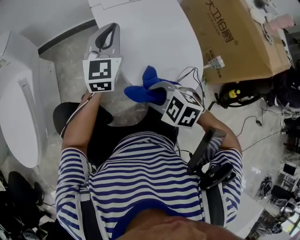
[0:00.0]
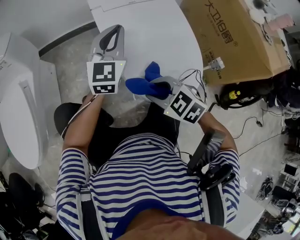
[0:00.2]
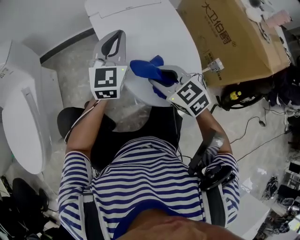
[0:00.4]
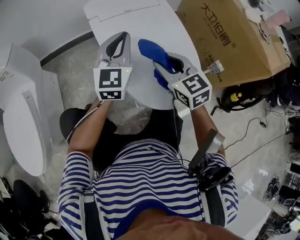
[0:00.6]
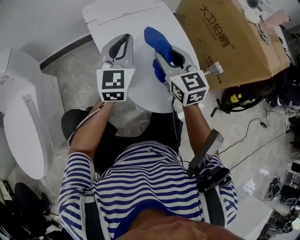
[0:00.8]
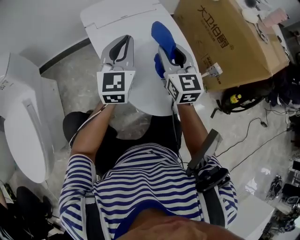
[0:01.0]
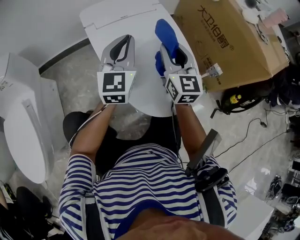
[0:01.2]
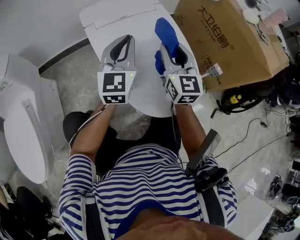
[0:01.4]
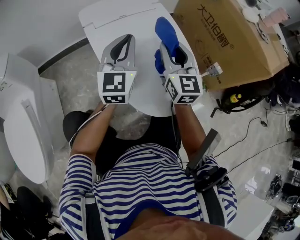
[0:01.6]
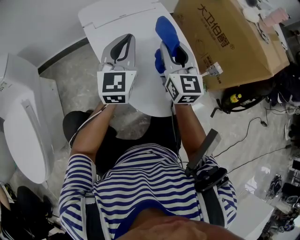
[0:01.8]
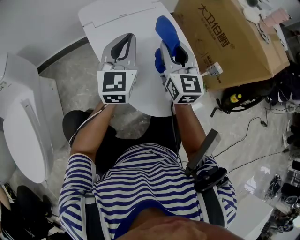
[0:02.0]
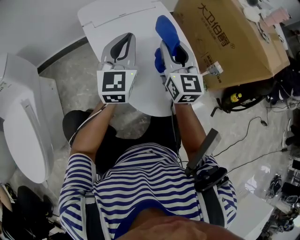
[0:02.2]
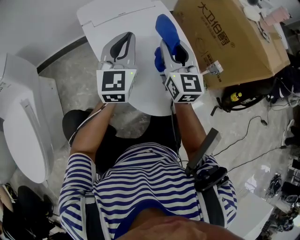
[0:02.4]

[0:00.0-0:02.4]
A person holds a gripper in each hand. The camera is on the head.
0:00.0 to 0:01.2: The right gripper ends up some 25 cm from where it was, and tilts its fingers approximately 50 degrees upward. Meanwhile the left gripper changes place by roughly 5 cm.
0:01.2 to 0:02.4: Neither gripper changes place.

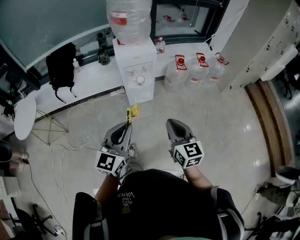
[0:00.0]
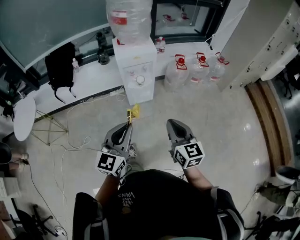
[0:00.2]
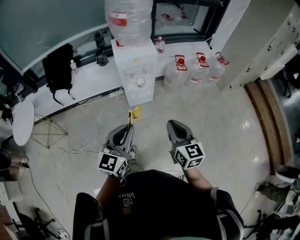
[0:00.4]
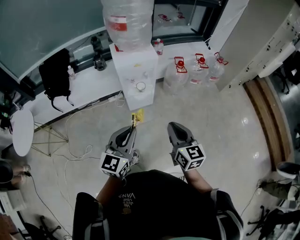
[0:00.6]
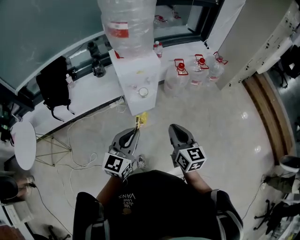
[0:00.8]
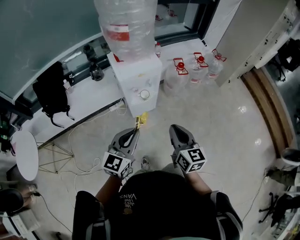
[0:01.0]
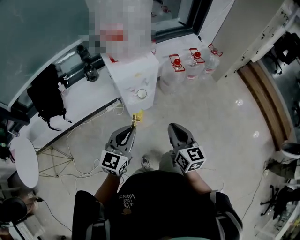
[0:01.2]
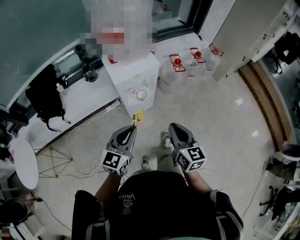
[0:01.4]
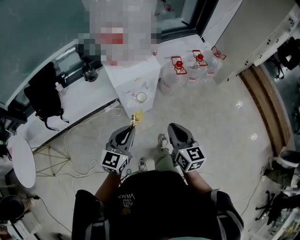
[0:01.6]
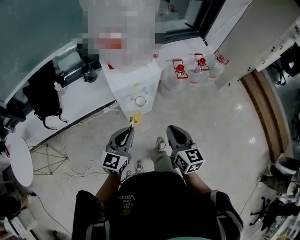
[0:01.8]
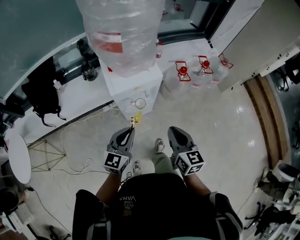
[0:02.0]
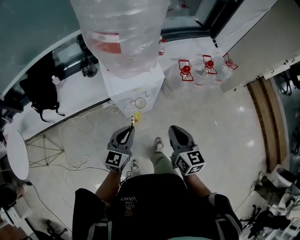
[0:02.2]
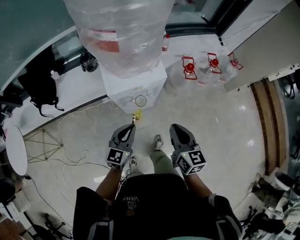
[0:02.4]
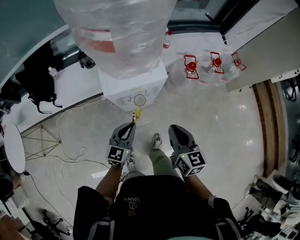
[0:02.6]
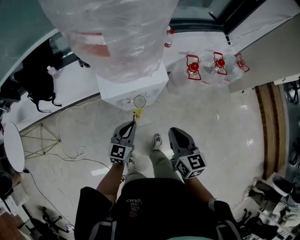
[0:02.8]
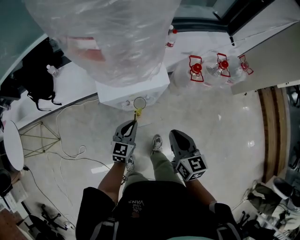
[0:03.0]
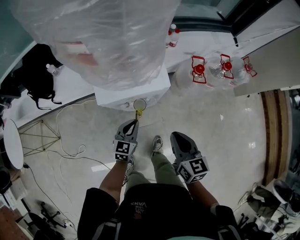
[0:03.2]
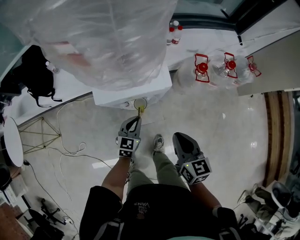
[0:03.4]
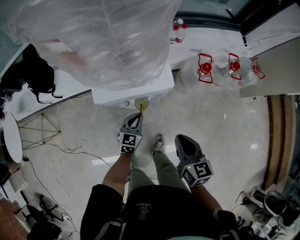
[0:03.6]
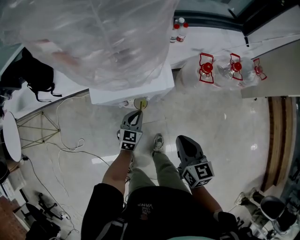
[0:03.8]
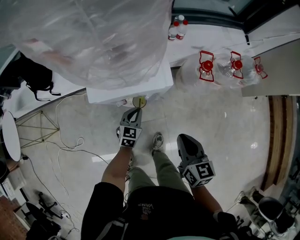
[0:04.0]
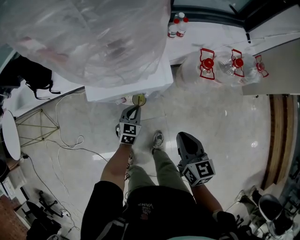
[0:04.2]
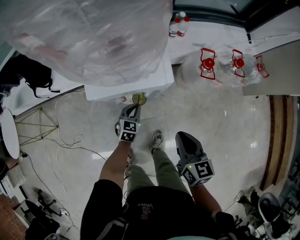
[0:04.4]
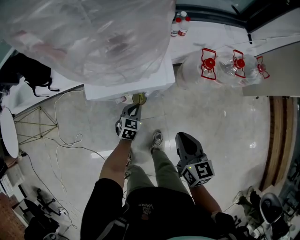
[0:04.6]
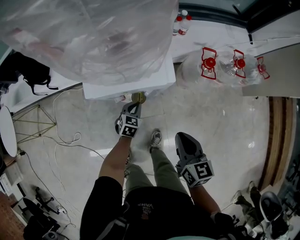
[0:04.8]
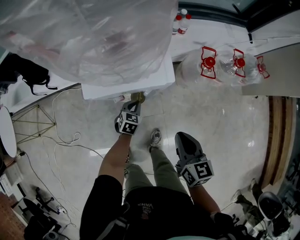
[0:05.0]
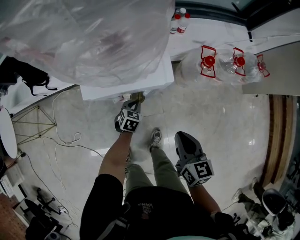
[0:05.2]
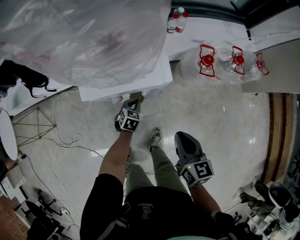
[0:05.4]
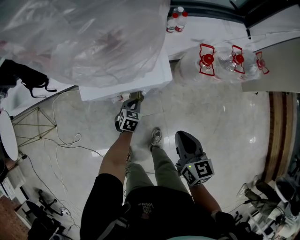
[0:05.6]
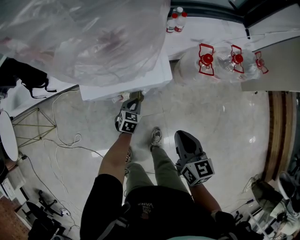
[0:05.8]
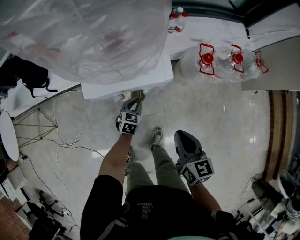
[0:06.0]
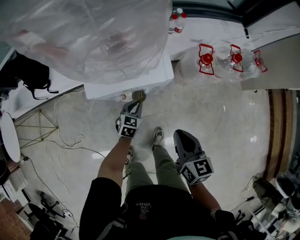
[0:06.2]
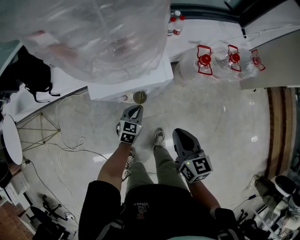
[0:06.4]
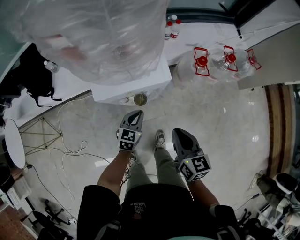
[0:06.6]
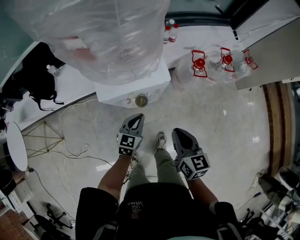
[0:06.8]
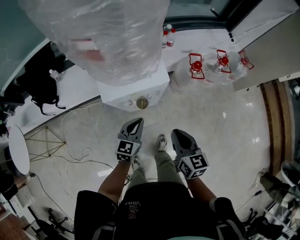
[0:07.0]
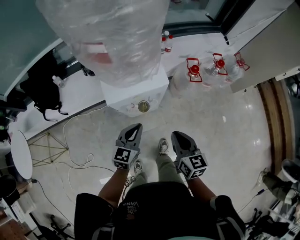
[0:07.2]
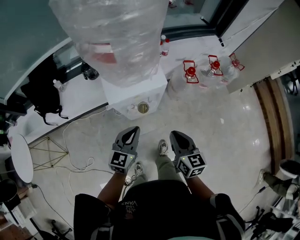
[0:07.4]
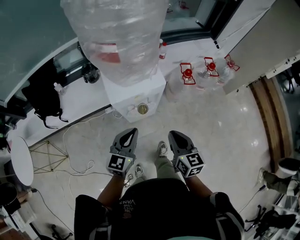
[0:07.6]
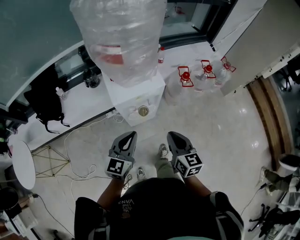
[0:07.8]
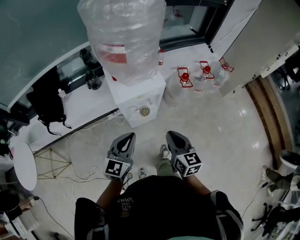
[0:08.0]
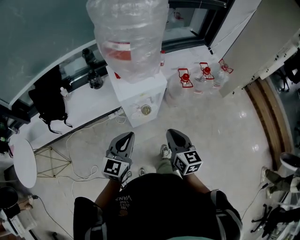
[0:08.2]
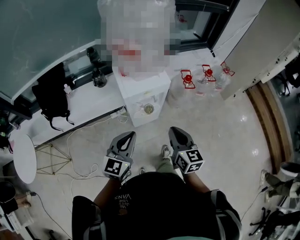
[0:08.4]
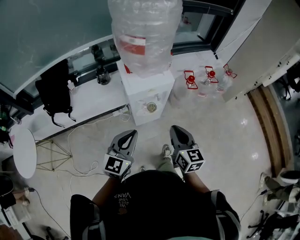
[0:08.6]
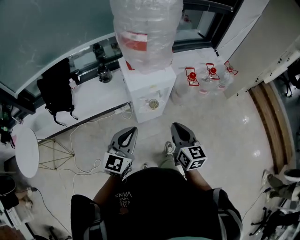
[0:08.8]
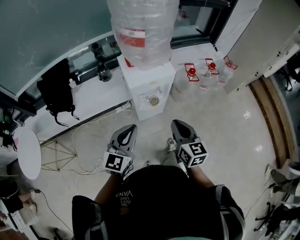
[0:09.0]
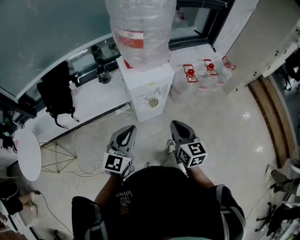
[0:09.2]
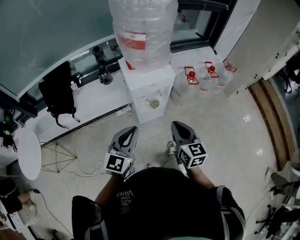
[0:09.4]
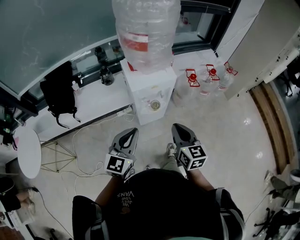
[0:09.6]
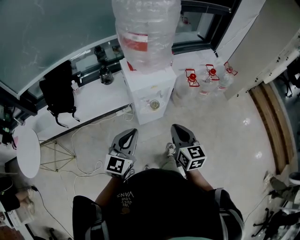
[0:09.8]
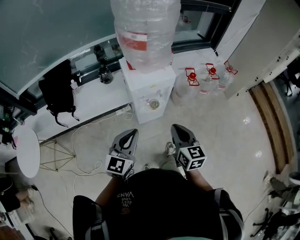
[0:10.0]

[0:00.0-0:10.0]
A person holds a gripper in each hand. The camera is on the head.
0:00.0 to 0:01.4: Both grippers move forward and to the left, roughly 30 cm.
0:01.4 to 0:02.8: The grippers both shift forward and downward by approximately 30 cm.
0:02.8 to 0:04.2: The left gripper moves downward and forward, roughly 20 cm. The right gripper is displaced downward and to the right by approximately 10 cm.
0:04.2 to 0:05.8: The left gripper goes approximately 5 cm downward.
0:05.8 to 0:07.2: The right gripper travels upward, backward and to the left by approximately 15 cm; the left gripper moves upward and backward, some 30 cm, and swivels some 30 degrees.
0:07.2 to 0:08.6: The two grippers go roughly 25 cm backward, upward and to the left.
0:08.6 to 0:10.0: The grippers make only small movements.

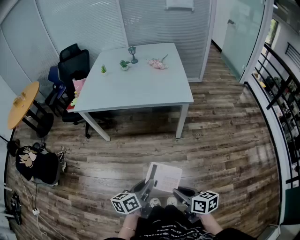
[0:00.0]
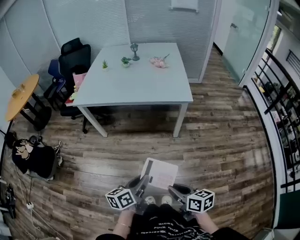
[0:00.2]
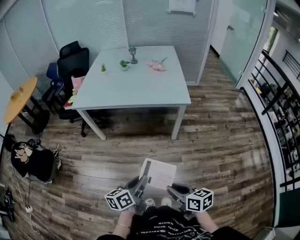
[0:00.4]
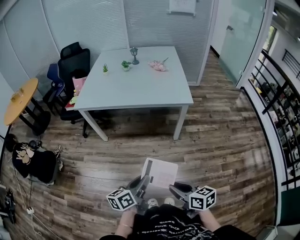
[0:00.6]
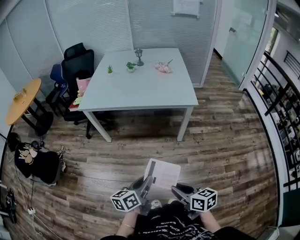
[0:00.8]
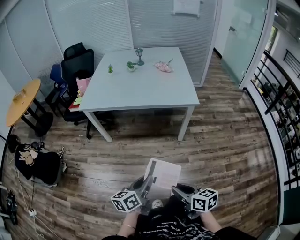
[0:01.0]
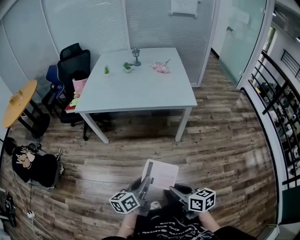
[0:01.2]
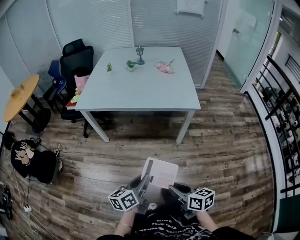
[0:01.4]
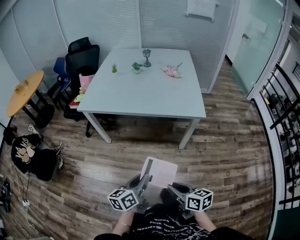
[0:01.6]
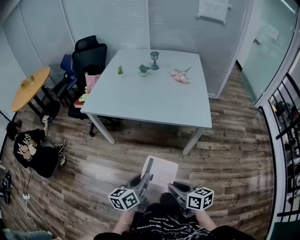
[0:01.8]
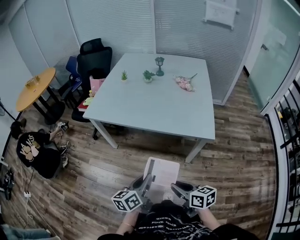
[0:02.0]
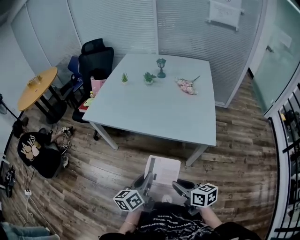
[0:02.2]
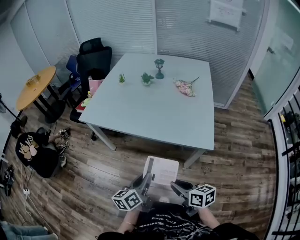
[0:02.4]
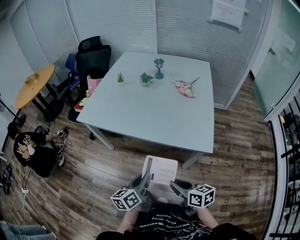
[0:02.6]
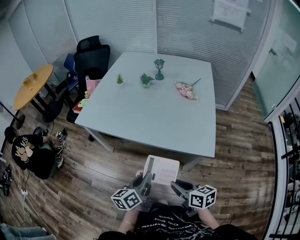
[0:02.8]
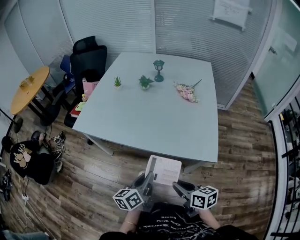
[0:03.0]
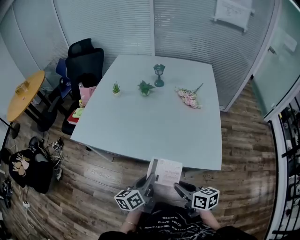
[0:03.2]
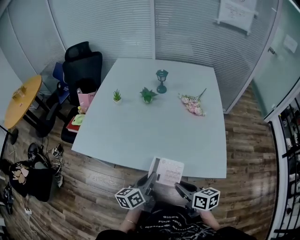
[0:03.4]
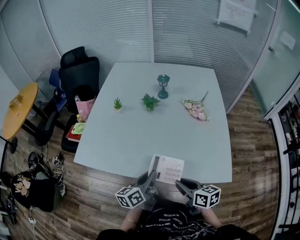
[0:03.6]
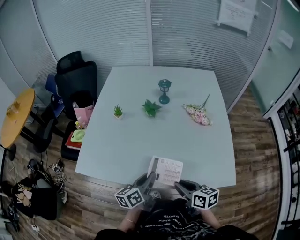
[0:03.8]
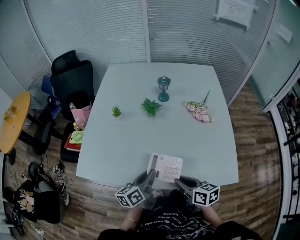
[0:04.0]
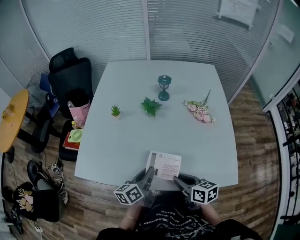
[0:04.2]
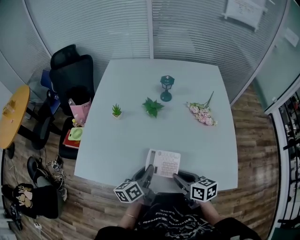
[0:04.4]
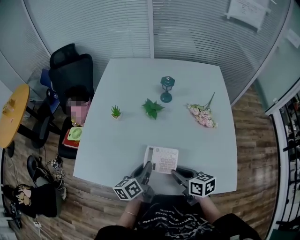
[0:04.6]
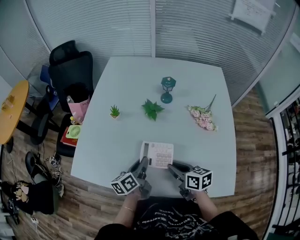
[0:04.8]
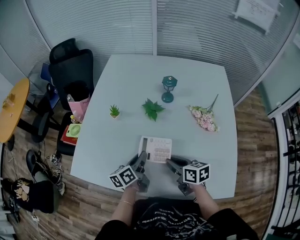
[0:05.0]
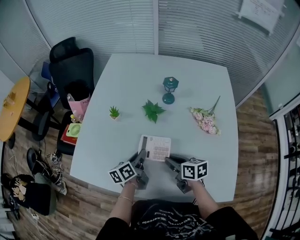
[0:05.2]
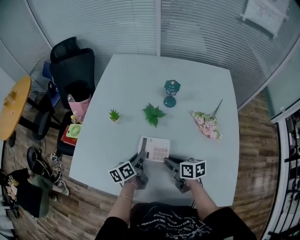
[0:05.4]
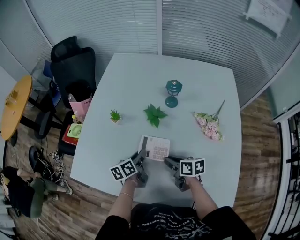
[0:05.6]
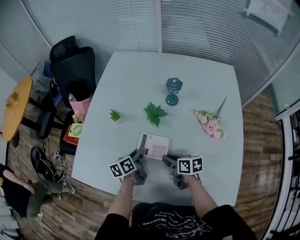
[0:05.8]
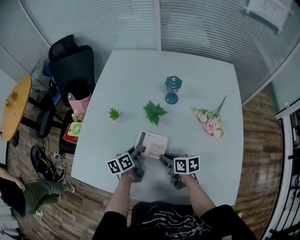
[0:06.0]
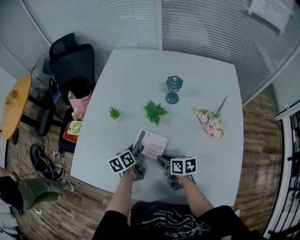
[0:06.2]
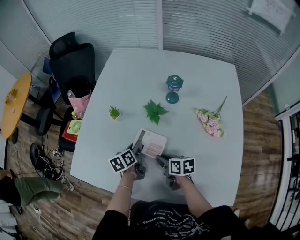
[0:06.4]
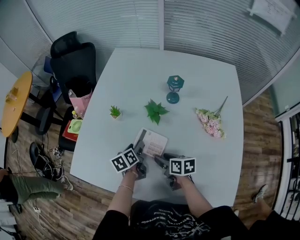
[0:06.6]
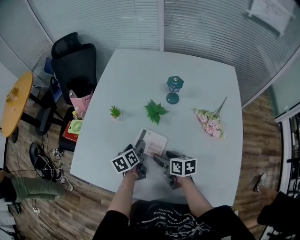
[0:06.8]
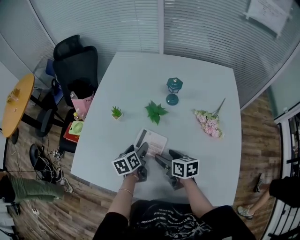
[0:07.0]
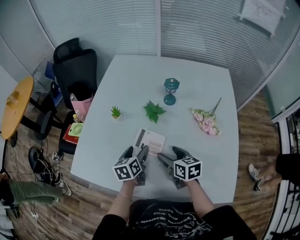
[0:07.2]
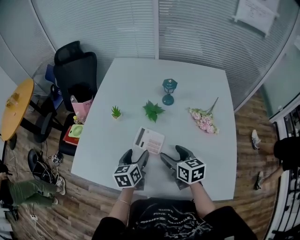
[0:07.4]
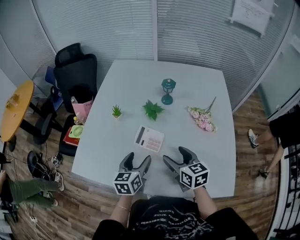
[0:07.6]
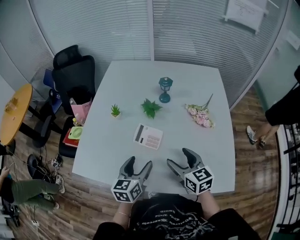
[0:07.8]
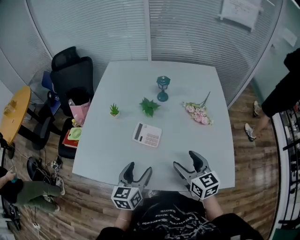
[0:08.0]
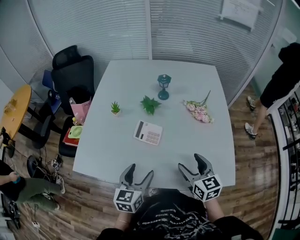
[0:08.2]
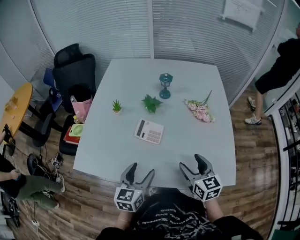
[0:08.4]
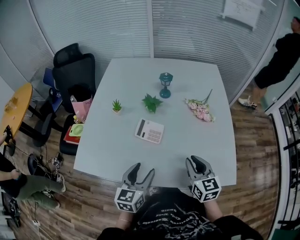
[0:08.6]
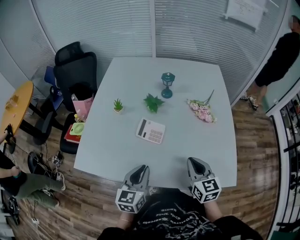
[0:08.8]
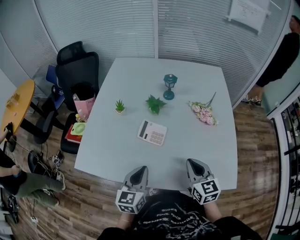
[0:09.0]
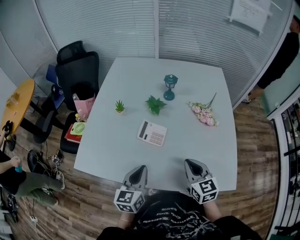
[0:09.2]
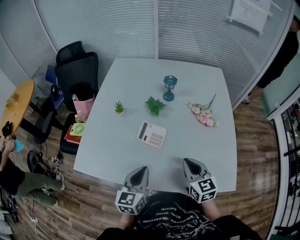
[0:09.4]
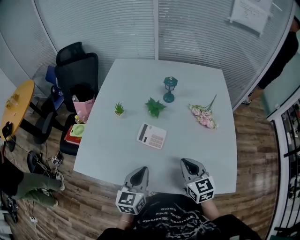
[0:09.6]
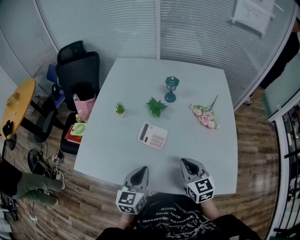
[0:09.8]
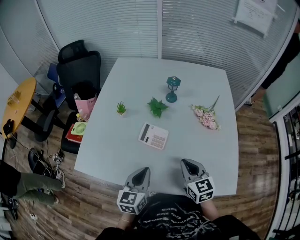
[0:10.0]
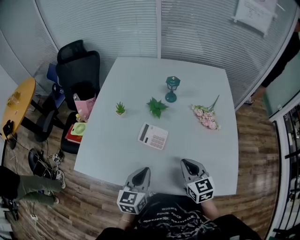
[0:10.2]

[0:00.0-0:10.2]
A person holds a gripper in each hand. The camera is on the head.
0:00.0 to 0:01.4: The right gripper moves forward and to the left, some 10 cm. Meanwhile the left gripper shifts approximately 10 cm to the left and forward.
0:01.4 to 0:03.0: The left gripper travels forward by some 35 cm, while the right gripper heads forward and to the right, covering roughly 40 cm.
0:03.0 to 0:04.4: Both grippers travel together forward, approximately 30 cm.
0:04.4 to 0:05.8: The grippers both shift forward and downward by roughly 20 cm.
0:05.8 to 0:07.2: The left gripper changes place by some 5 cm, changes its angle by roughly 20 degrees, and opens. Meanwhile the right gripper moves upward, some 5 cm, rotates roughly 20 degrees, and opens.
0:07.2 to 0:08.8: The right gripper heads backward, to the right and upward, covering about 20 cm, turns by about 30 degrees, and closes its fingers. Meanwhile the left gripper is displaced backward and upward by about 20 cm, swivels about 30 degrees, and closes.
0:08.8 to 0:10.2: The right gripper moves some 5 cm.

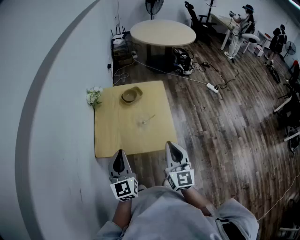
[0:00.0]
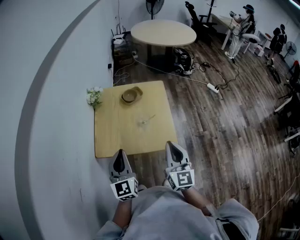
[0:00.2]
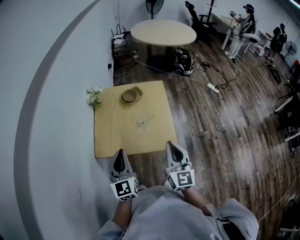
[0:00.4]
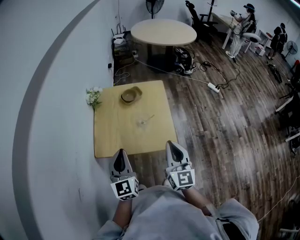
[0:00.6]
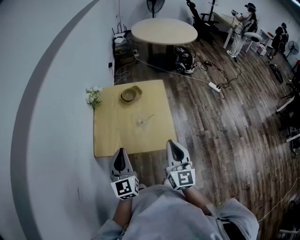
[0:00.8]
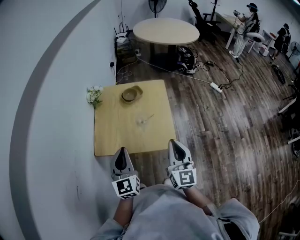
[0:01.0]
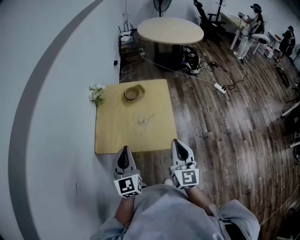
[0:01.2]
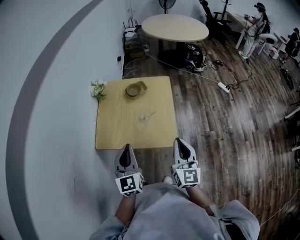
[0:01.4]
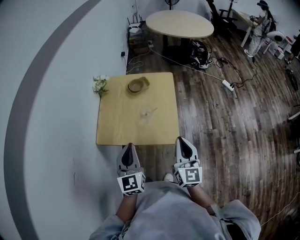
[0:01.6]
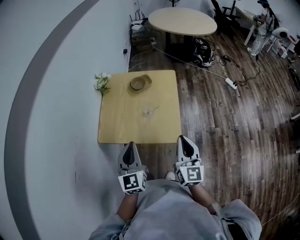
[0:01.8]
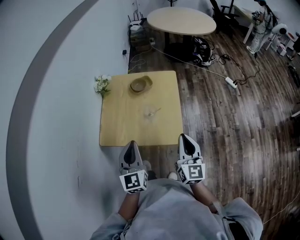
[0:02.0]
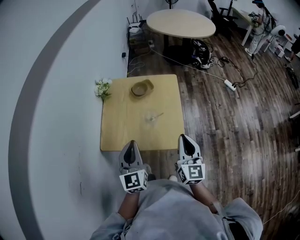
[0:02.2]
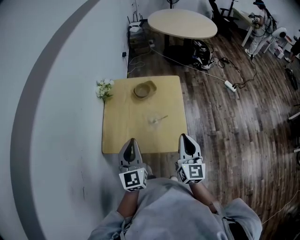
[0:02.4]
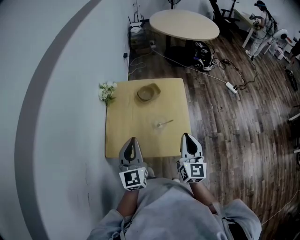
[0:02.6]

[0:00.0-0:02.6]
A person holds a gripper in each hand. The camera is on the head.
0:00.0 to 0:01.2: Both grippers travel together to the right, approximately 5 cm.
0:01.2 to 0:02.6: The grippers both shift forward by approximately 10 cm.
